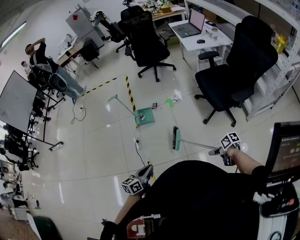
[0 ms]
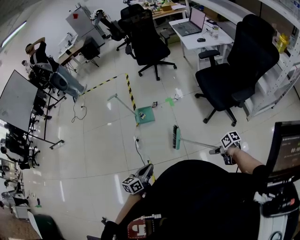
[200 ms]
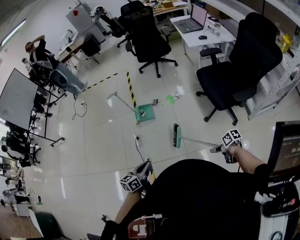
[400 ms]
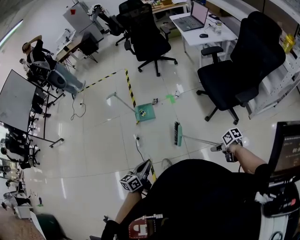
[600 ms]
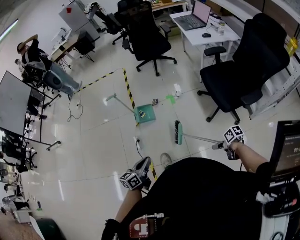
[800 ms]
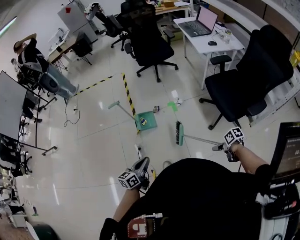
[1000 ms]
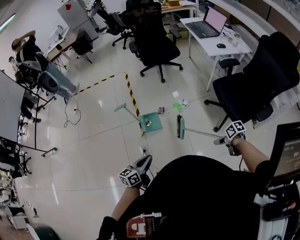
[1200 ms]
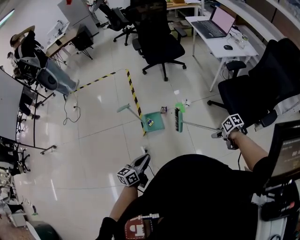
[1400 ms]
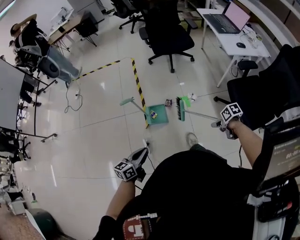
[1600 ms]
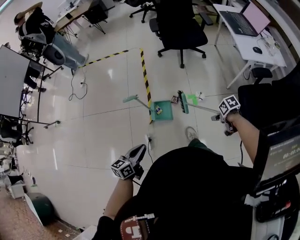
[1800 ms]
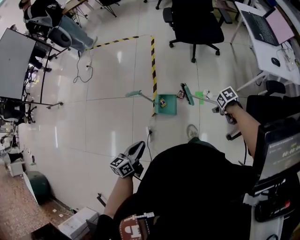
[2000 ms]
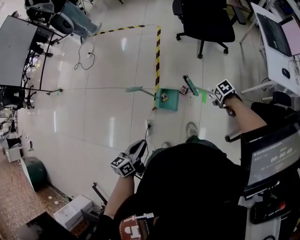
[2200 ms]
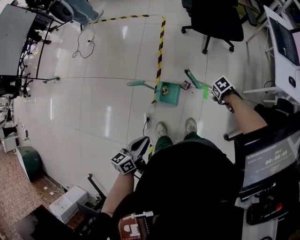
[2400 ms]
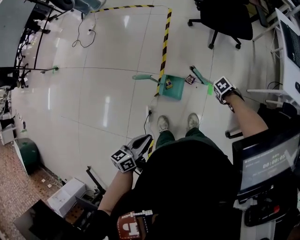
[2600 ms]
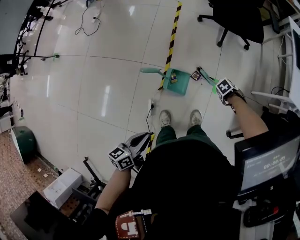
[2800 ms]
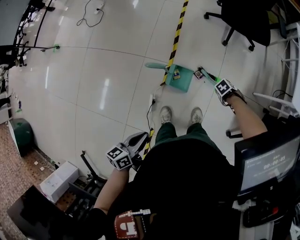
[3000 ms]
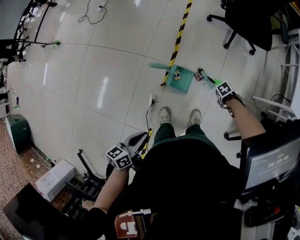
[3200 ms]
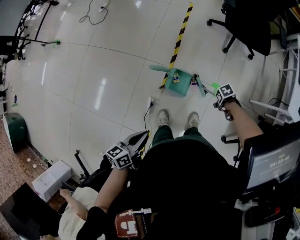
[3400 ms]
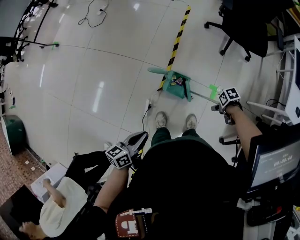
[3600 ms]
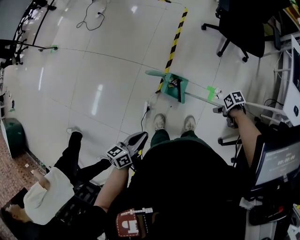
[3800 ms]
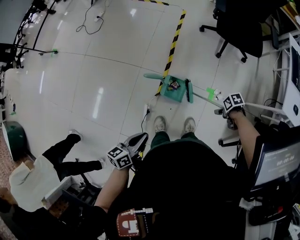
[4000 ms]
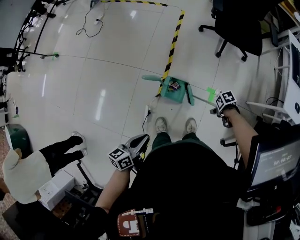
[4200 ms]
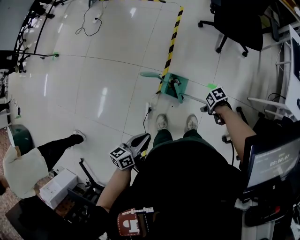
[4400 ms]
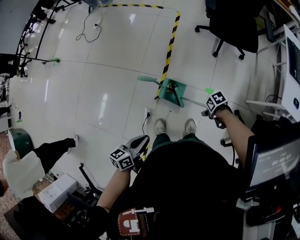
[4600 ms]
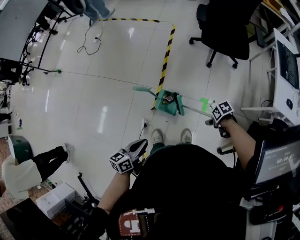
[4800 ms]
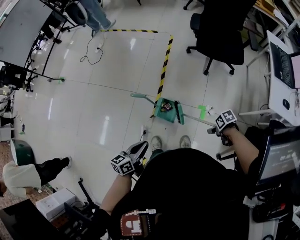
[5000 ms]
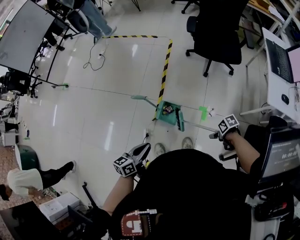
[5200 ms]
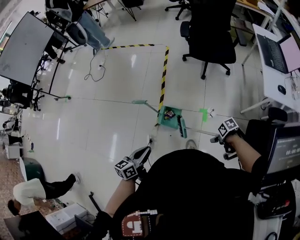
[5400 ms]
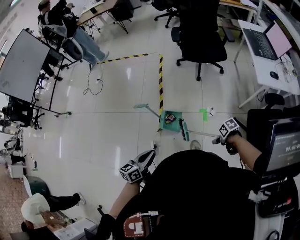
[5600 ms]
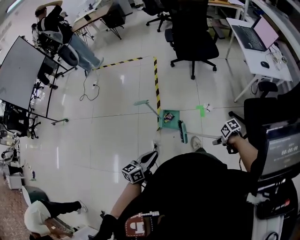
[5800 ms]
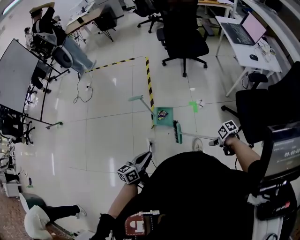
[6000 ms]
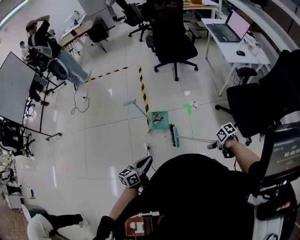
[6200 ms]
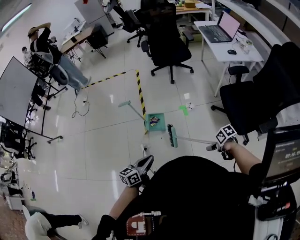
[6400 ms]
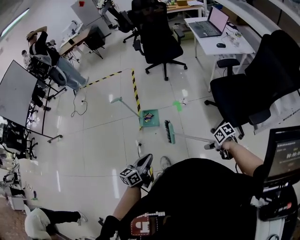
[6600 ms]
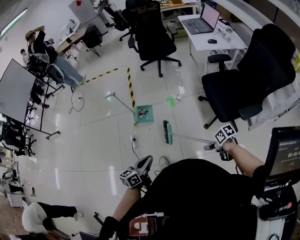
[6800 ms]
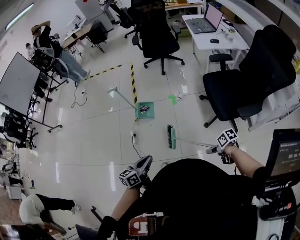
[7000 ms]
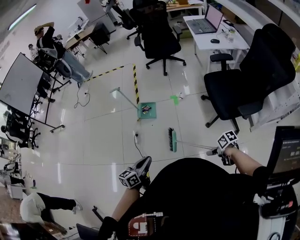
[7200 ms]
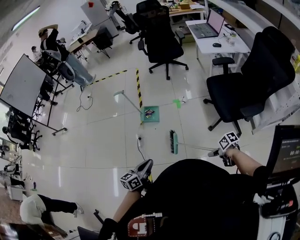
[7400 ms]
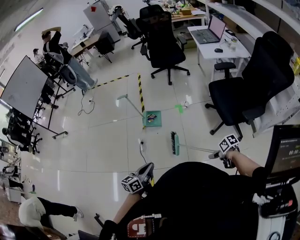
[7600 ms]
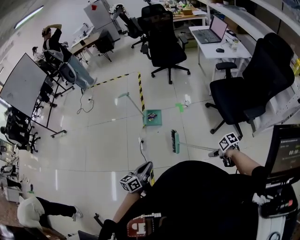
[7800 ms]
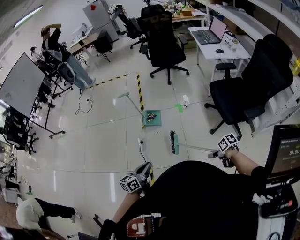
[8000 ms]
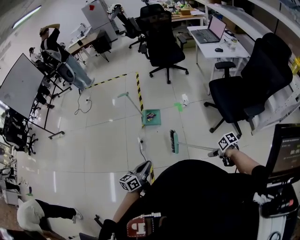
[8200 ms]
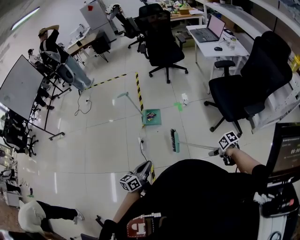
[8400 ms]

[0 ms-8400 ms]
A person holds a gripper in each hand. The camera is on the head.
0 ms to 1400 ms: The left gripper shifts by some 40 cm.
1400 ms to 2800 ms: The left gripper shifts by some 20 cm, and rotates about 30 degrees.
4200 ms to 5600 ms: The left gripper moves approximately 15 cm.
5600 ms to 7000 ms: The left gripper changes place by about 40 cm.
7000 ms to 8400 ms: The left gripper moves approximately 15 cm.

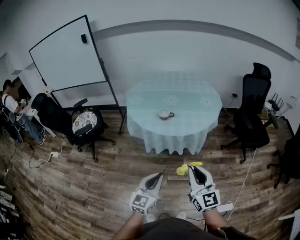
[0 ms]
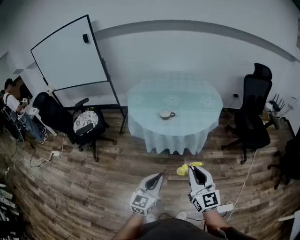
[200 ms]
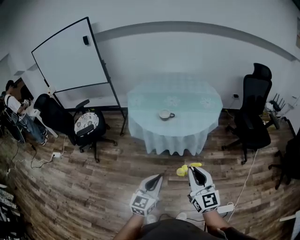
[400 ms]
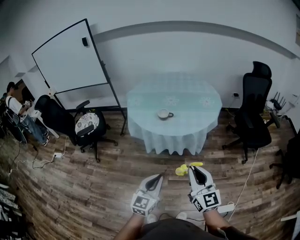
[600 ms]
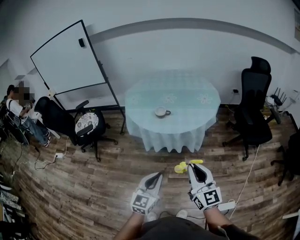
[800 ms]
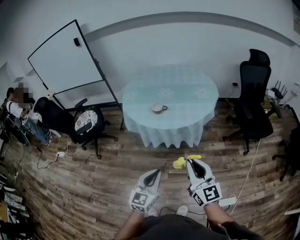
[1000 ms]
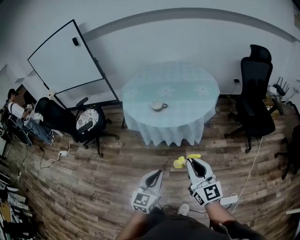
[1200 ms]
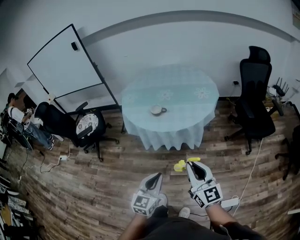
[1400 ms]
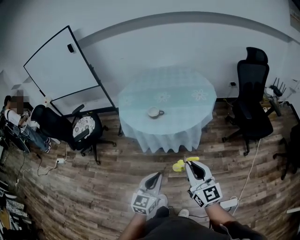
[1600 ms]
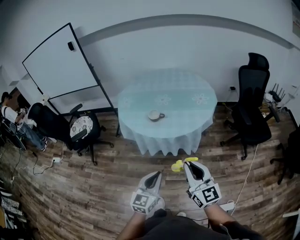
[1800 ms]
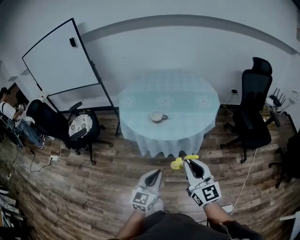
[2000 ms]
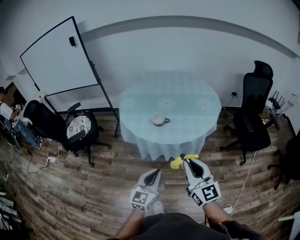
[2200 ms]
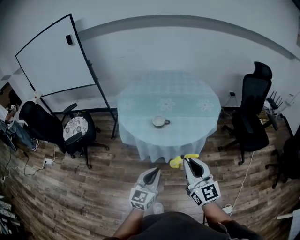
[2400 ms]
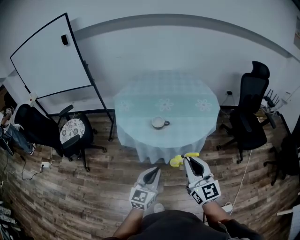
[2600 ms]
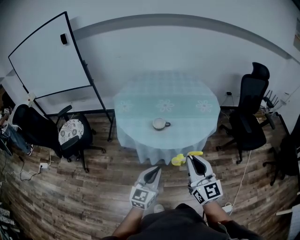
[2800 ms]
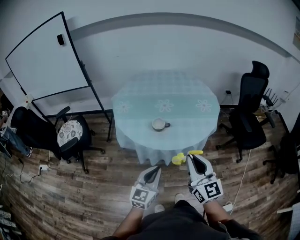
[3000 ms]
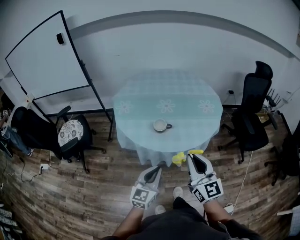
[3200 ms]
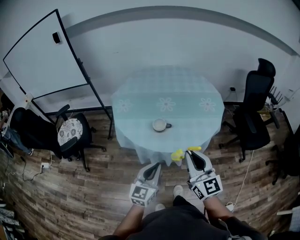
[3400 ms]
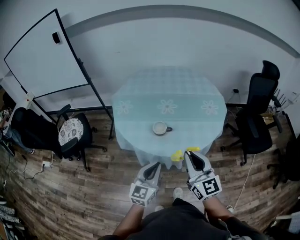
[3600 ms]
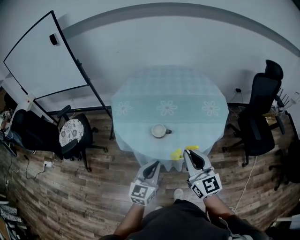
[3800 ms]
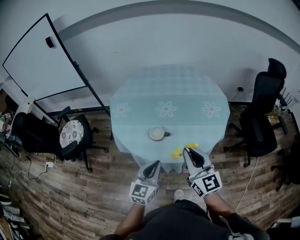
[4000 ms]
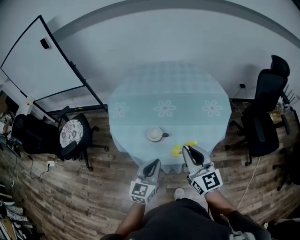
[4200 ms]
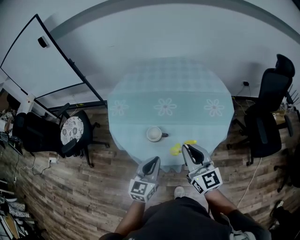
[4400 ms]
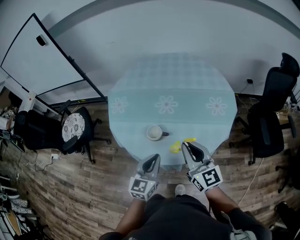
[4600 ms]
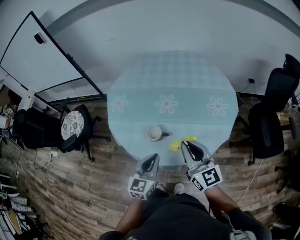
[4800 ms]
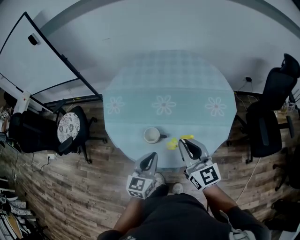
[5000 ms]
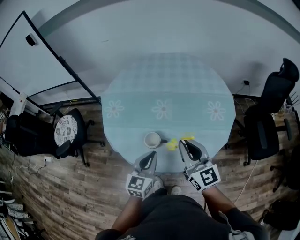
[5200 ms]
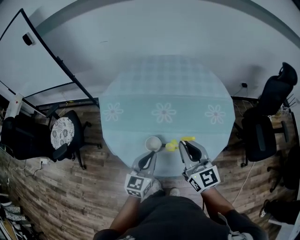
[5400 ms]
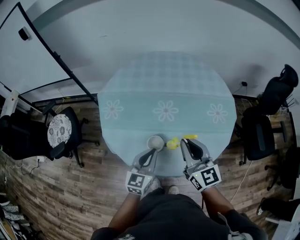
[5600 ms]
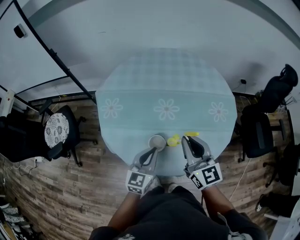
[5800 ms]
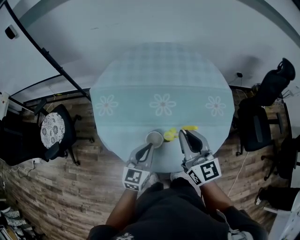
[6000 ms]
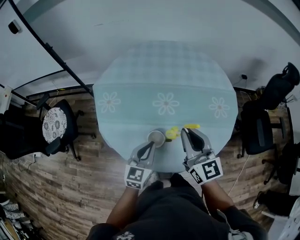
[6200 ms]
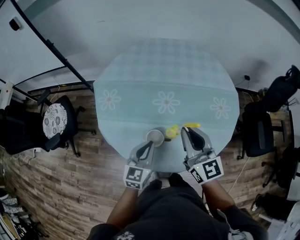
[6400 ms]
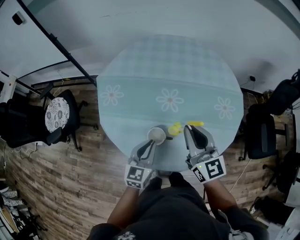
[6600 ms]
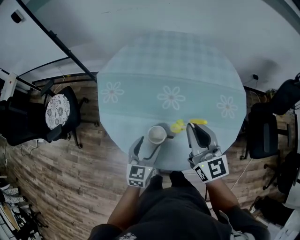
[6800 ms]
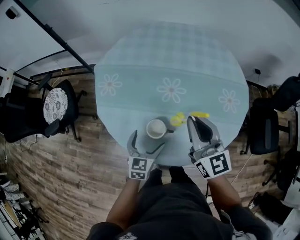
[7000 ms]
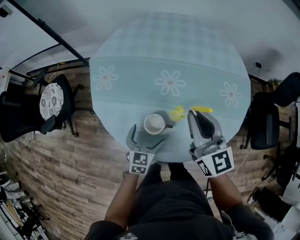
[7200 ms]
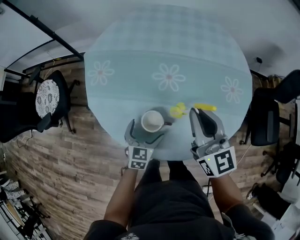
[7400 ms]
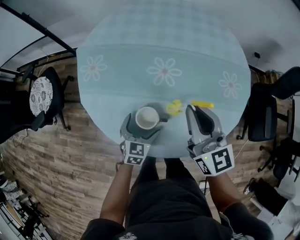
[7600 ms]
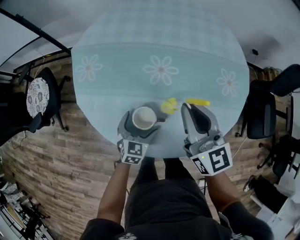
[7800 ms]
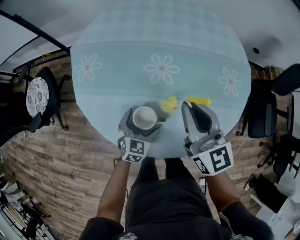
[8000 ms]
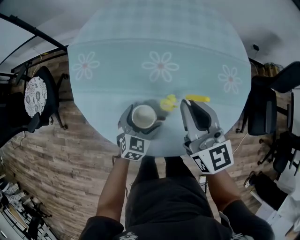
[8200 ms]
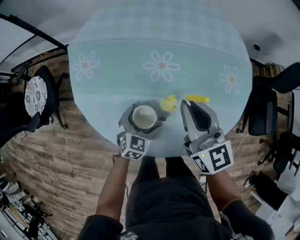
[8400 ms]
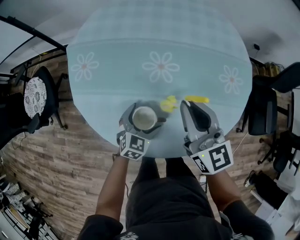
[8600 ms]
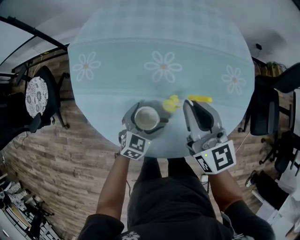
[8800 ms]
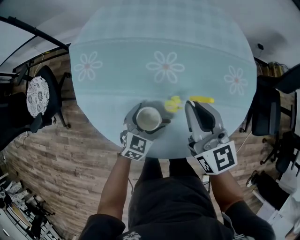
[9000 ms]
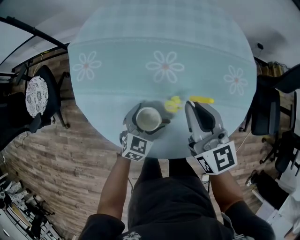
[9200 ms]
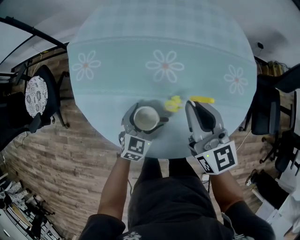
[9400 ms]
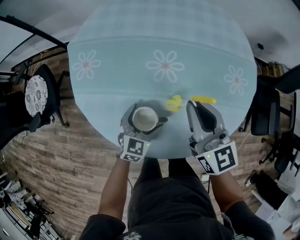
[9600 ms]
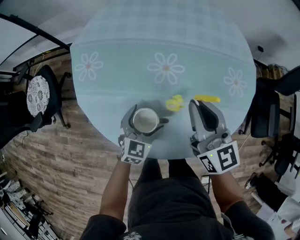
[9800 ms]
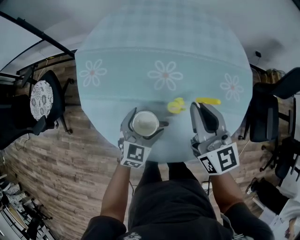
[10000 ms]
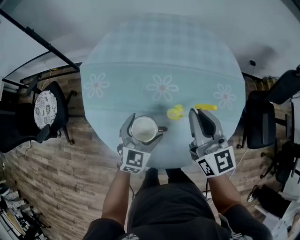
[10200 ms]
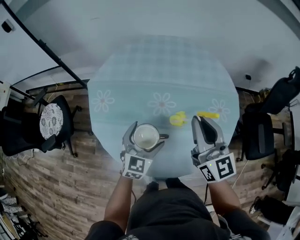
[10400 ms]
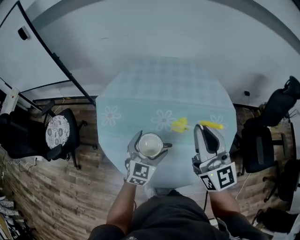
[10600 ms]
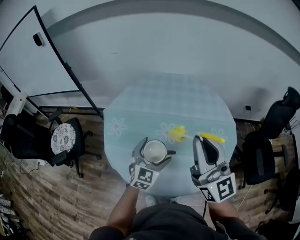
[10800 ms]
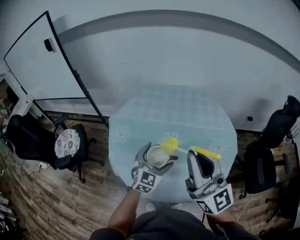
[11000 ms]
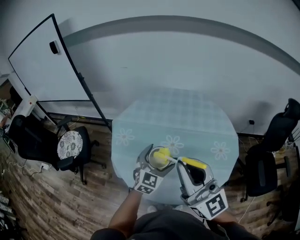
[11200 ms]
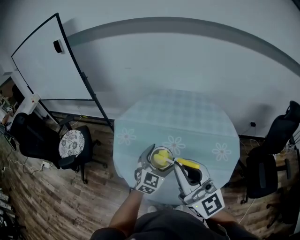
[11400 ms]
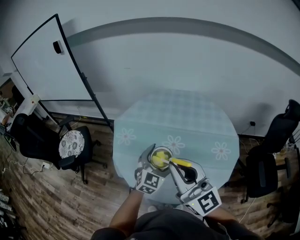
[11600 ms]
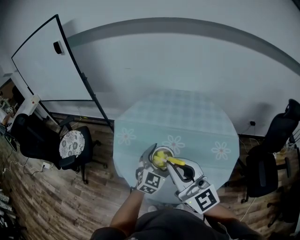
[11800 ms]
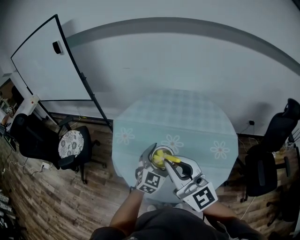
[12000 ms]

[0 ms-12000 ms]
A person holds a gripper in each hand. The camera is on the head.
0 ms to 1600 ms: Both grippers move to the right, some 10 cm.
1600 ms to 3000 ms: The two grippers go some 25 cm forward and to the left.
3000 ms to 4400 ms: Both grippers travel together forward, approximately 30 cm.
4400 ms to 6000 ms: Both grippers move forward and to the left, roughly 20 cm.
6000 ms to 7600 ms: The right gripper goes about 10 cm downward and forward. Meanwhile the left gripper is displaced downward by about 20 cm, changes its angle by some 20 degrees, and opens its fingers.
7600 ms to 9000 ms: The right gripper shifts by some 5 cm, while the left gripper moves some 5 cm.
9000 ms to 10400 ms: The two grippers go approximately 20 cm upward.
10400 ms to 12000 ms: The left gripper is displaced upward by about 15 cm. The right gripper travels upward, backward and to the left by some 25 cm, and swivels about 30 degrees.

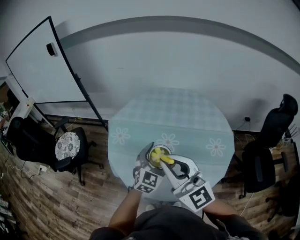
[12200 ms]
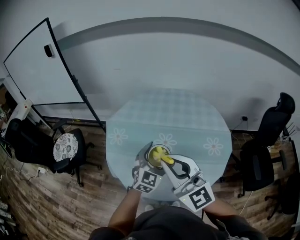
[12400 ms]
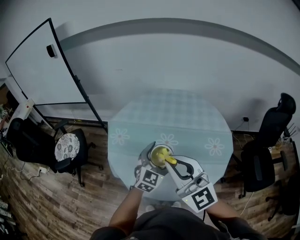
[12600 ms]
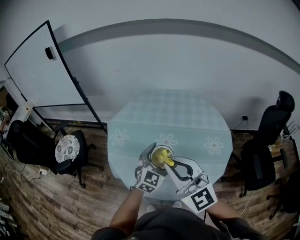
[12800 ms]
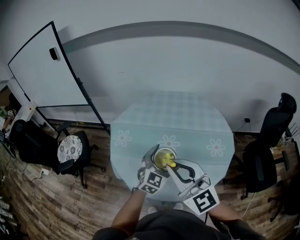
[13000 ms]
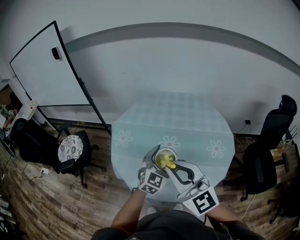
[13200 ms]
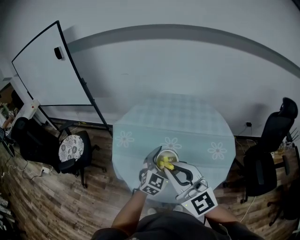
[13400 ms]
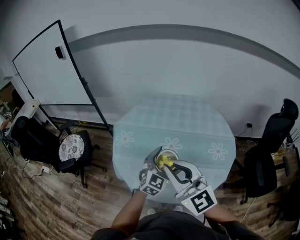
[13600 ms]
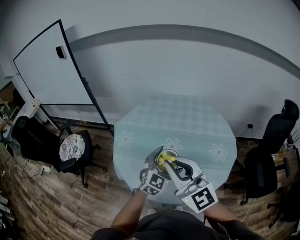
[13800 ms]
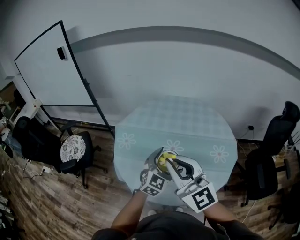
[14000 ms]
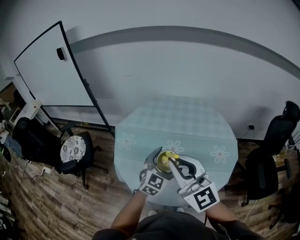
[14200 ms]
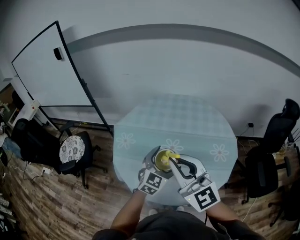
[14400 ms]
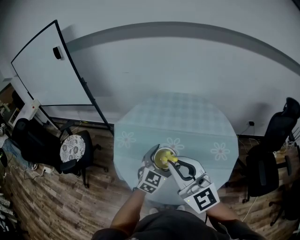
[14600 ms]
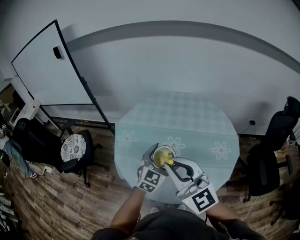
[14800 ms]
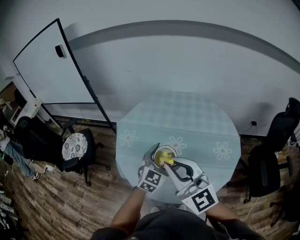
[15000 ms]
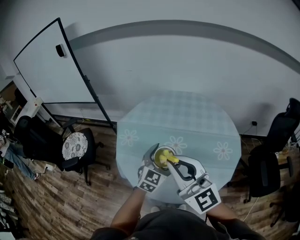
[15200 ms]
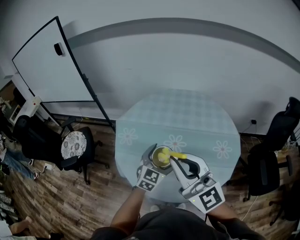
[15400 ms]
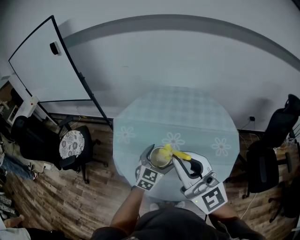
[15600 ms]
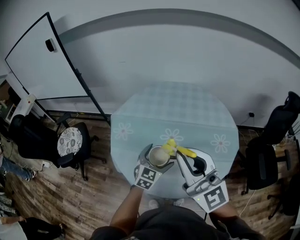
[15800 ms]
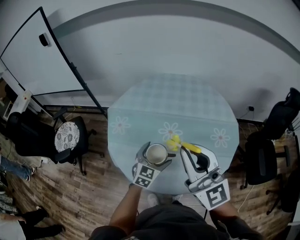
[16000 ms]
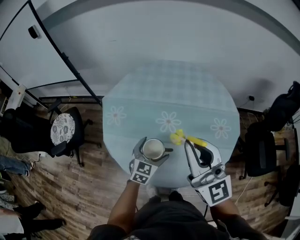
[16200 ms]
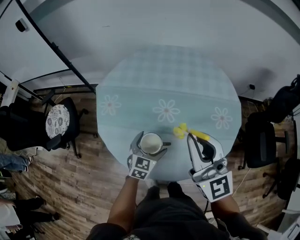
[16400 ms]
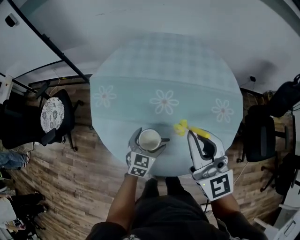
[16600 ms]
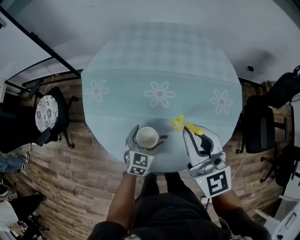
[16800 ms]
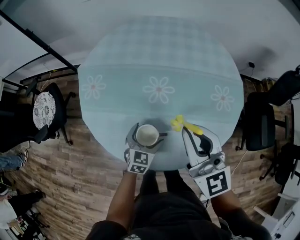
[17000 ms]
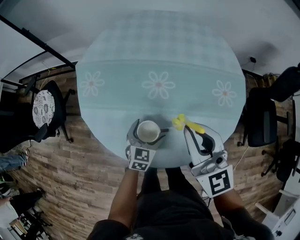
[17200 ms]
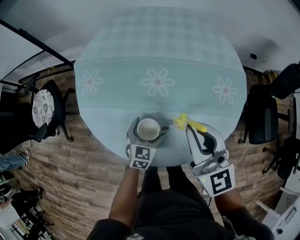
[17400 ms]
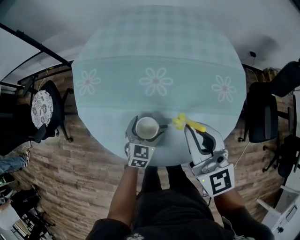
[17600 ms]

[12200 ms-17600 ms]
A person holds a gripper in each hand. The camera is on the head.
12200 ms to 15000 ms: There are only small adjustments of the grippers.
15000 ms to 16200 ms: The right gripper moves to the right and forward, about 10 cm, while the left gripper goes some 15 cm downward.
16200 ms to 17600 ms: The two grippers go roughly 20 cm downward.
